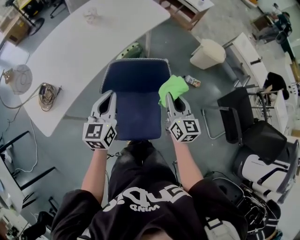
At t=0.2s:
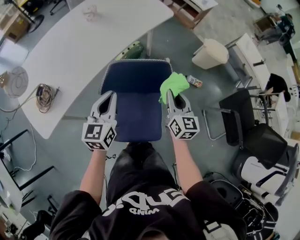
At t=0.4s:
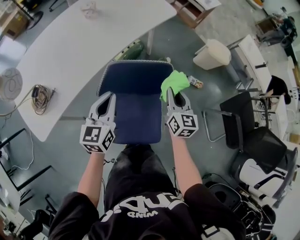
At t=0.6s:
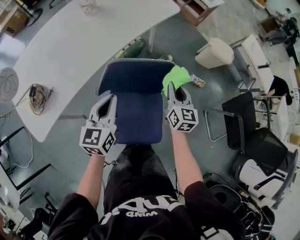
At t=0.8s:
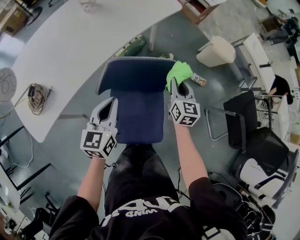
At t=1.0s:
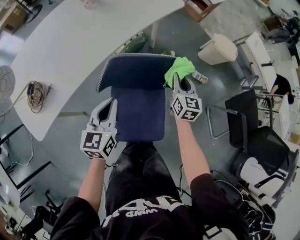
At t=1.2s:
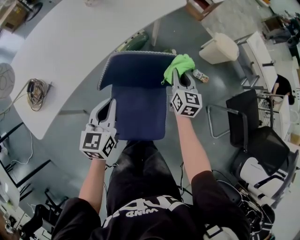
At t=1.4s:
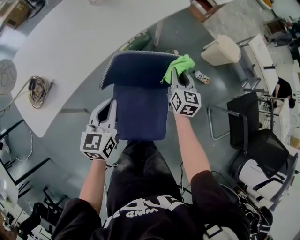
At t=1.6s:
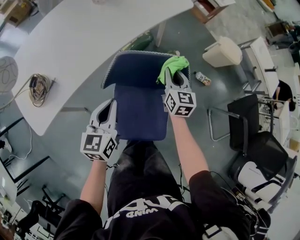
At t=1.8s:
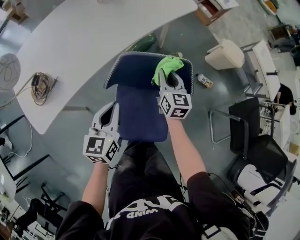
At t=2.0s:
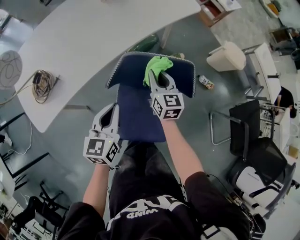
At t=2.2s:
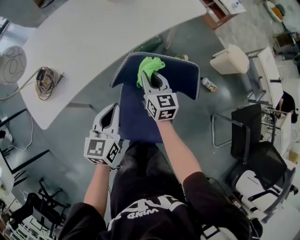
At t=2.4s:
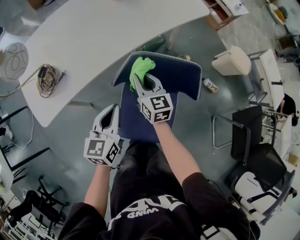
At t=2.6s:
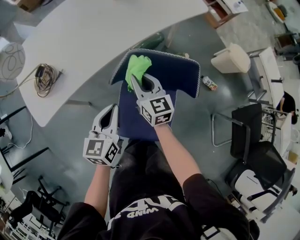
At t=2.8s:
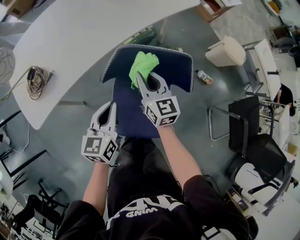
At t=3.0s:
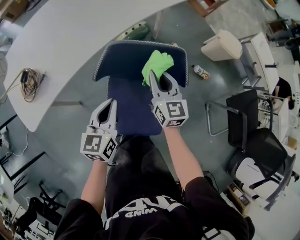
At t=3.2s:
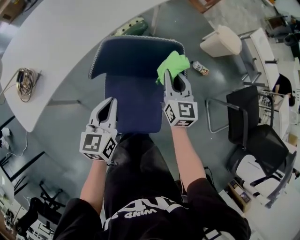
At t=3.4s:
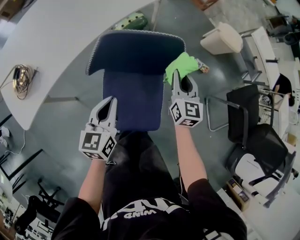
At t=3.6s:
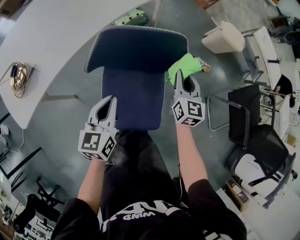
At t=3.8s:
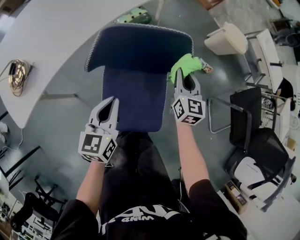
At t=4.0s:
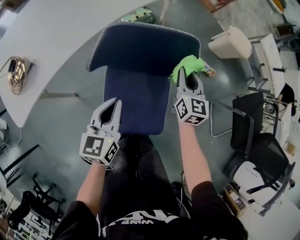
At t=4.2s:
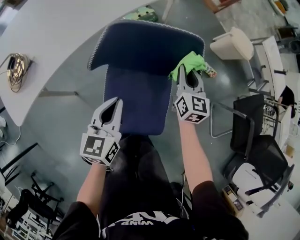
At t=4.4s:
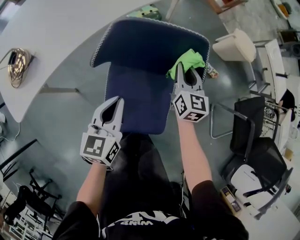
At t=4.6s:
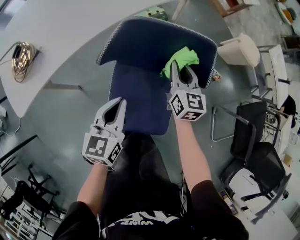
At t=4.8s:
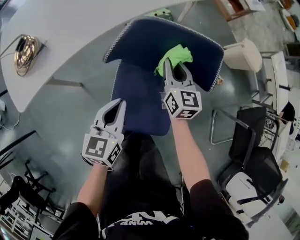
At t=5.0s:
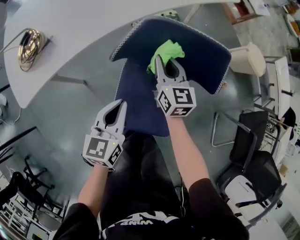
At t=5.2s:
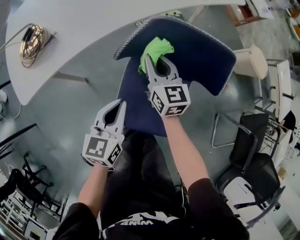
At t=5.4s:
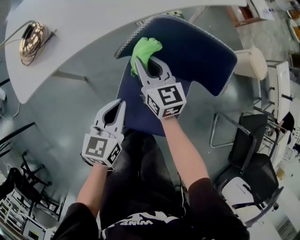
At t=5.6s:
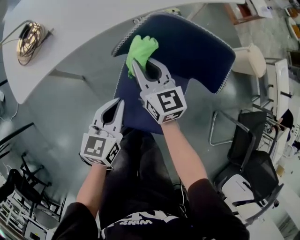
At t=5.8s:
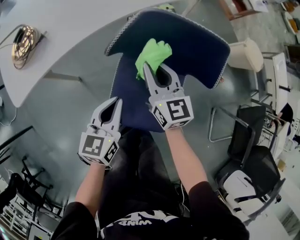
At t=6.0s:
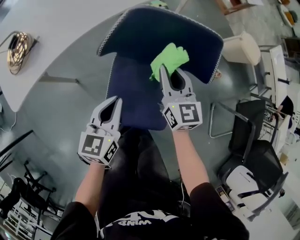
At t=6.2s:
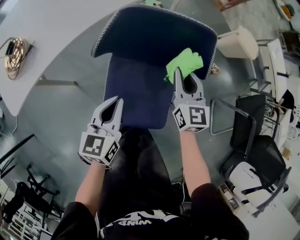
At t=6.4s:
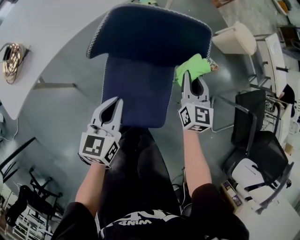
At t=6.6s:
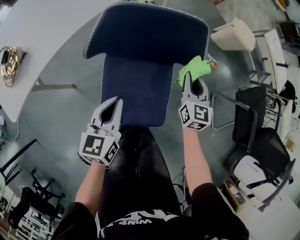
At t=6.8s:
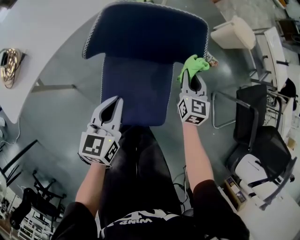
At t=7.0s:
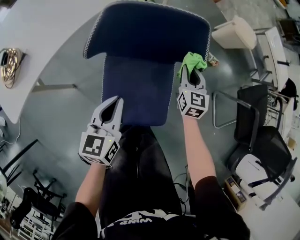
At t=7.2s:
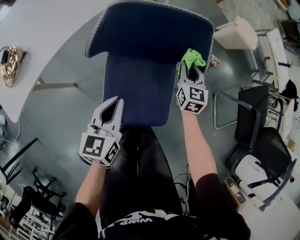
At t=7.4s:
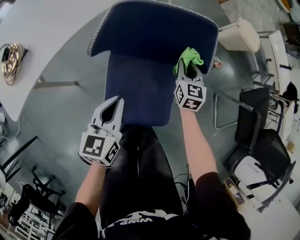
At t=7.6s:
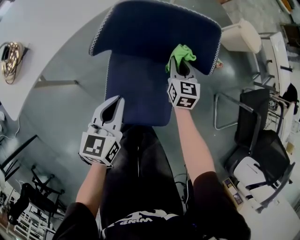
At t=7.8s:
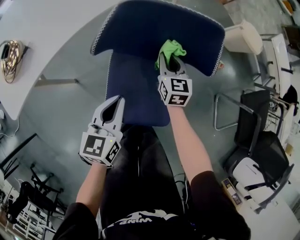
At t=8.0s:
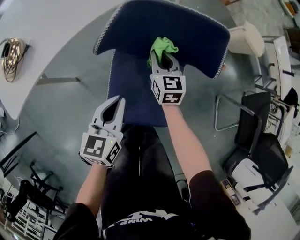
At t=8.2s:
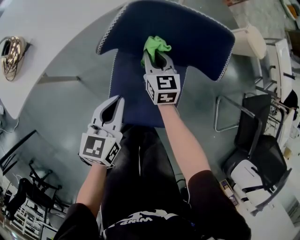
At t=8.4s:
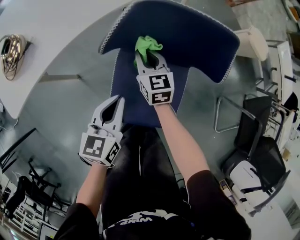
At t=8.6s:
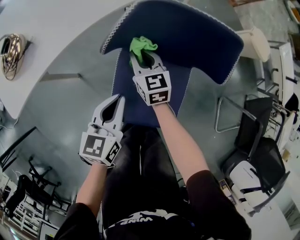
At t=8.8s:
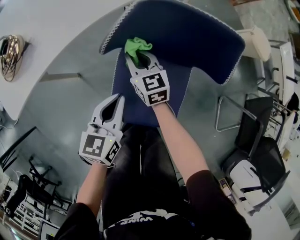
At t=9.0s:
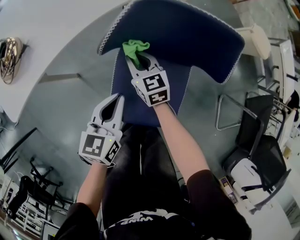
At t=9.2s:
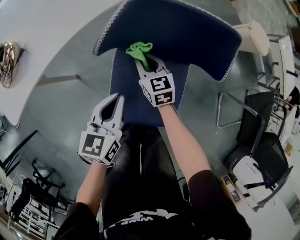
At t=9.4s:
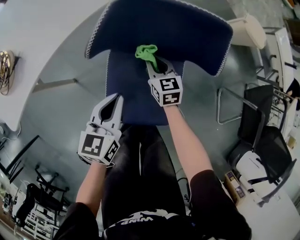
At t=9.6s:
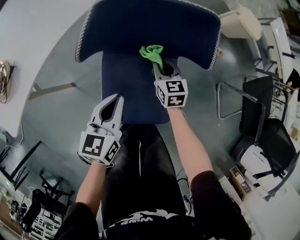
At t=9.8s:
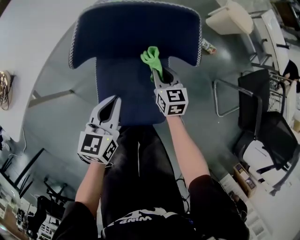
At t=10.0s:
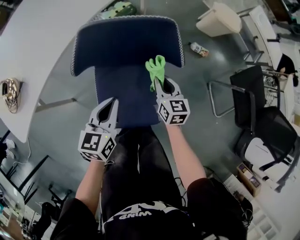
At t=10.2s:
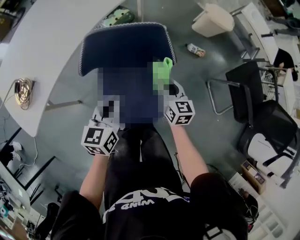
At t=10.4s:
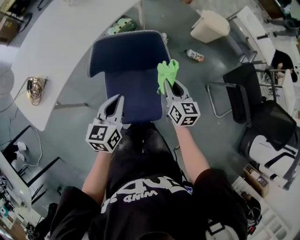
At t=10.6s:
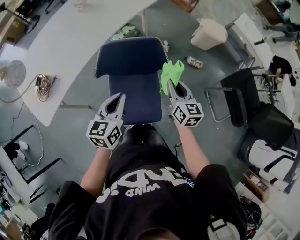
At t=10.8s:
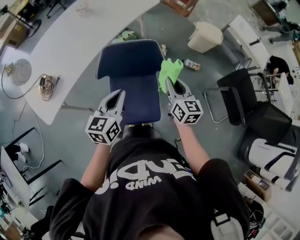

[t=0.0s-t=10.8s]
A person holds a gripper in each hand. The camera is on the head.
t=0.0s to t=1.6s: The left gripper goes approximately 10 cm downward. The right gripper is displaced forward, downward and to the left by approximately 20 cm.
t=1.6s to t=3.0s: The right gripper heads backward, covering roughly 5 cm, and travels to the left and back again, approximately 20 cm each way.
t=3.0s to t=4.6s: Both grippers travel together downward, approximately 10 cm. The right gripper moves approximately 15 cm to the right and comes back.
t=4.6s to t=6.2s: The right gripper travels backward by approximately 5 cm, and travels to the left and back again, some 20 cm each way.
t=6.2s to t=7.8s: The right gripper goes about 10 cm downward, and goes to the right and returns, about 10 cm each way.
t=7.8s to t=9.2s: The right gripper shifts some 10 cm to the left.
t=9.2s to t=10.8s: The right gripper shifts some 40 cm upward and to the right, and rotates about 30 degrees. Meanwhile the left gripper shifts roughly 30 cm upward and to the right.

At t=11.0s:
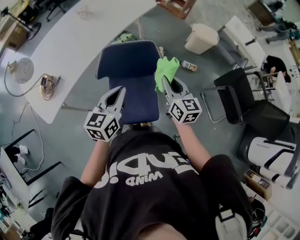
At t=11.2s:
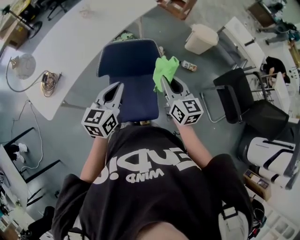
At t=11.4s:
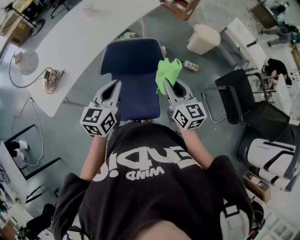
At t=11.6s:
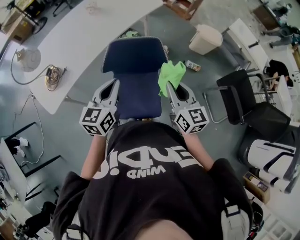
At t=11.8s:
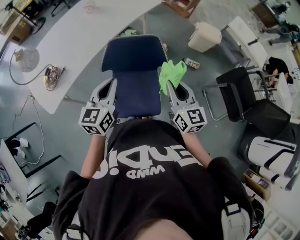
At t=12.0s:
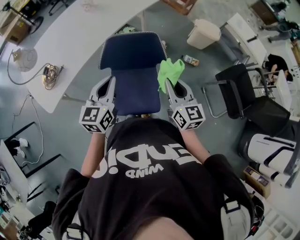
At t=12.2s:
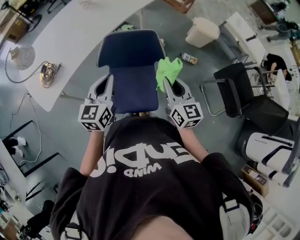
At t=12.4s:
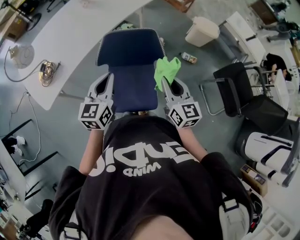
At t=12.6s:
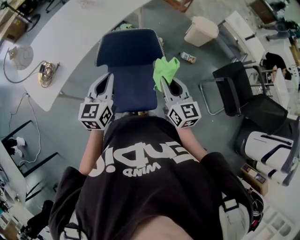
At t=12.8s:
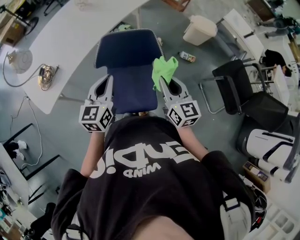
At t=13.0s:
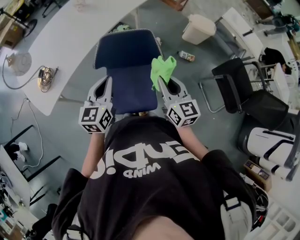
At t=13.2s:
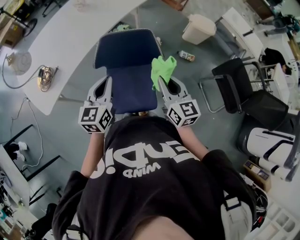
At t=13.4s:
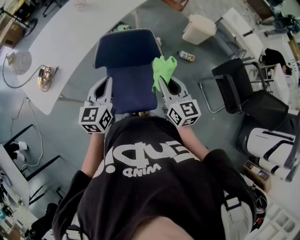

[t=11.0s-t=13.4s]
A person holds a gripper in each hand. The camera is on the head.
t=11.0s to t=12.2s: The right gripper moves backward, approximately 5 cm; the left gripper goes about 5 cm to the left.
t=12.2s to t=13.4s: Both grippers stay put.

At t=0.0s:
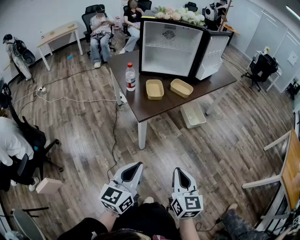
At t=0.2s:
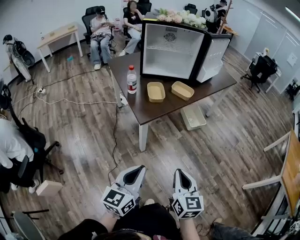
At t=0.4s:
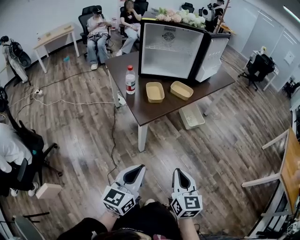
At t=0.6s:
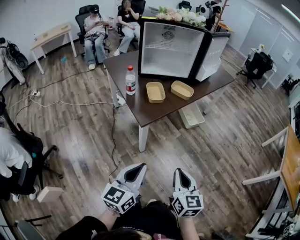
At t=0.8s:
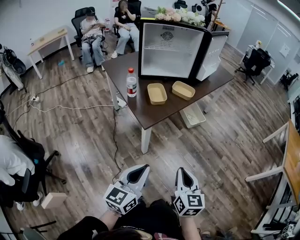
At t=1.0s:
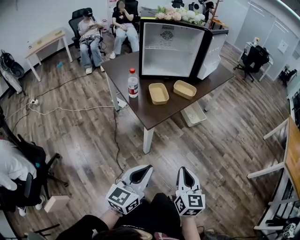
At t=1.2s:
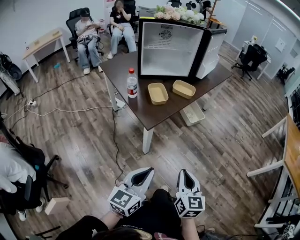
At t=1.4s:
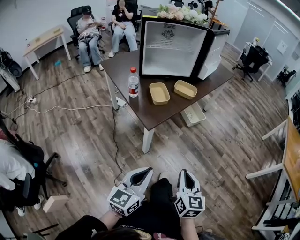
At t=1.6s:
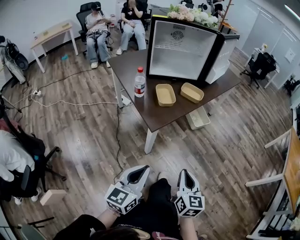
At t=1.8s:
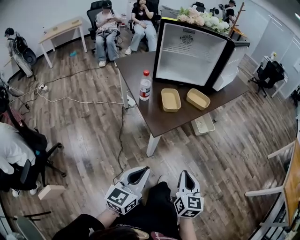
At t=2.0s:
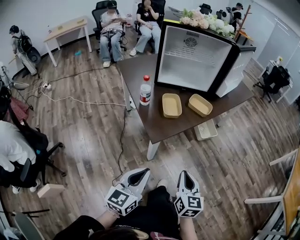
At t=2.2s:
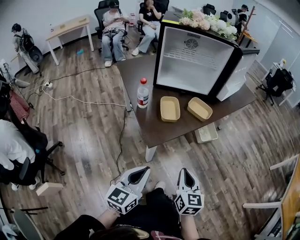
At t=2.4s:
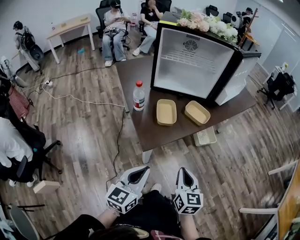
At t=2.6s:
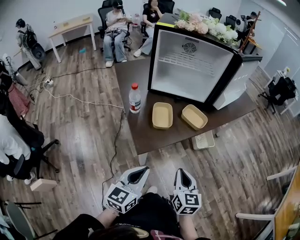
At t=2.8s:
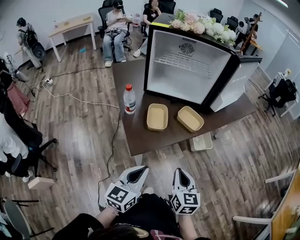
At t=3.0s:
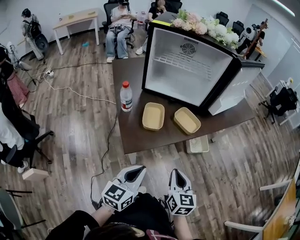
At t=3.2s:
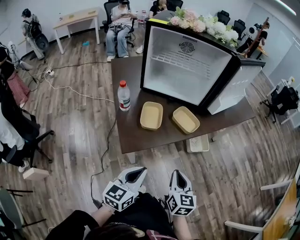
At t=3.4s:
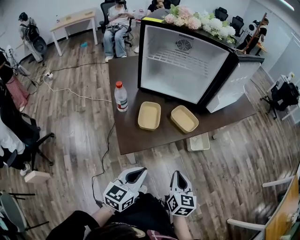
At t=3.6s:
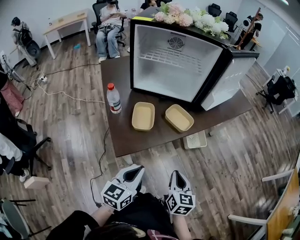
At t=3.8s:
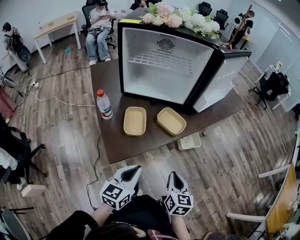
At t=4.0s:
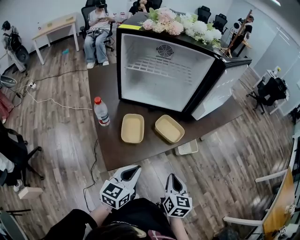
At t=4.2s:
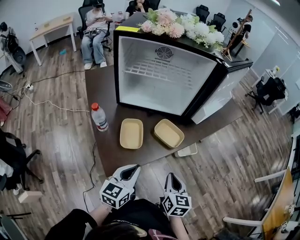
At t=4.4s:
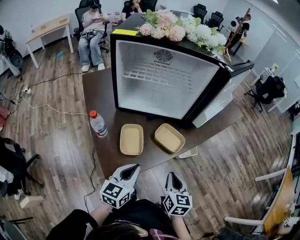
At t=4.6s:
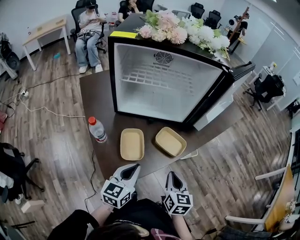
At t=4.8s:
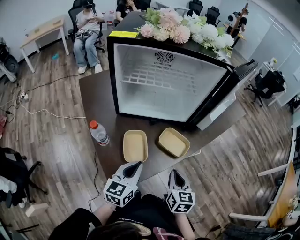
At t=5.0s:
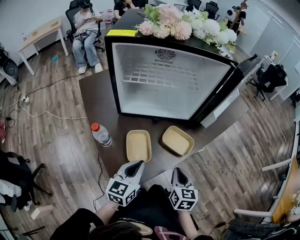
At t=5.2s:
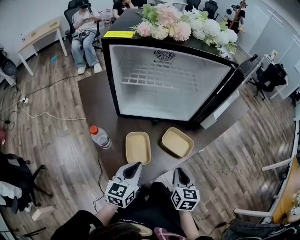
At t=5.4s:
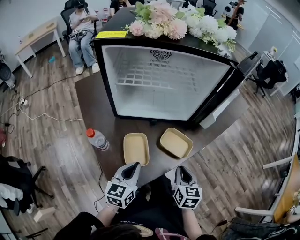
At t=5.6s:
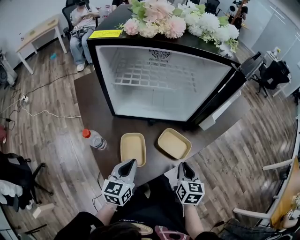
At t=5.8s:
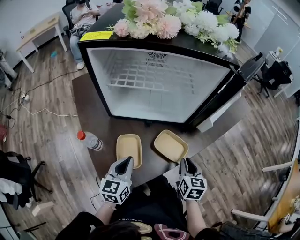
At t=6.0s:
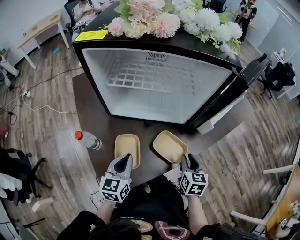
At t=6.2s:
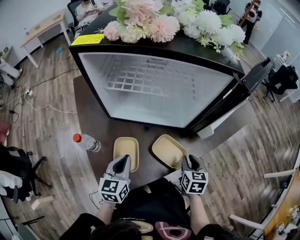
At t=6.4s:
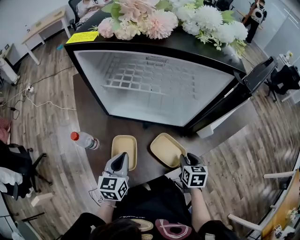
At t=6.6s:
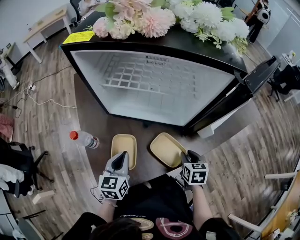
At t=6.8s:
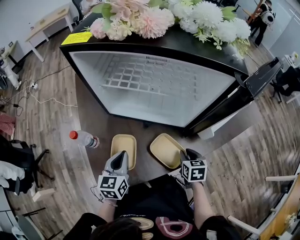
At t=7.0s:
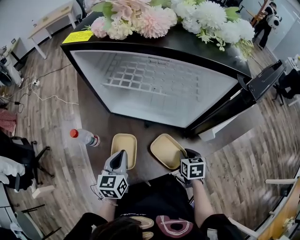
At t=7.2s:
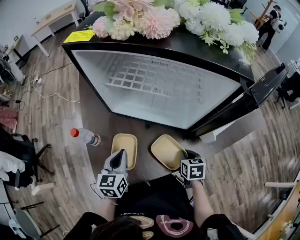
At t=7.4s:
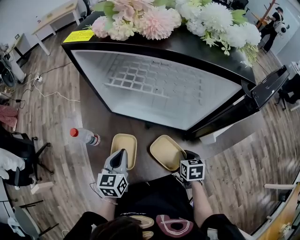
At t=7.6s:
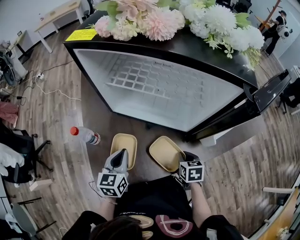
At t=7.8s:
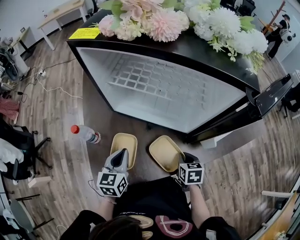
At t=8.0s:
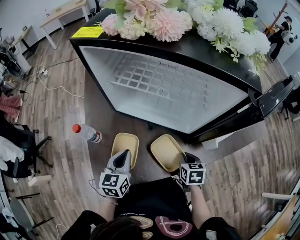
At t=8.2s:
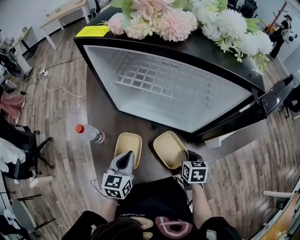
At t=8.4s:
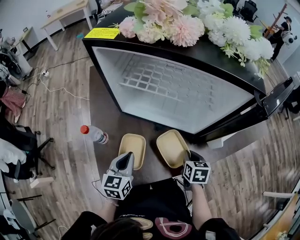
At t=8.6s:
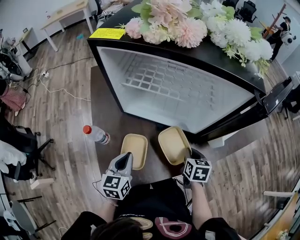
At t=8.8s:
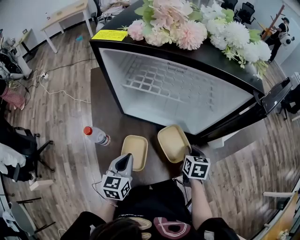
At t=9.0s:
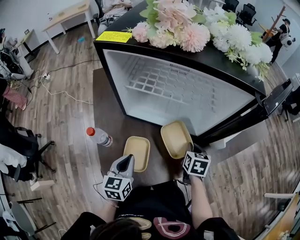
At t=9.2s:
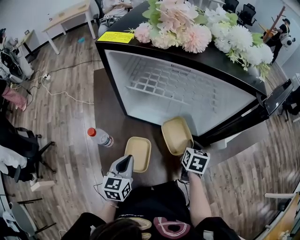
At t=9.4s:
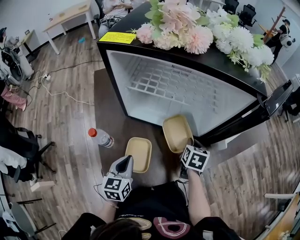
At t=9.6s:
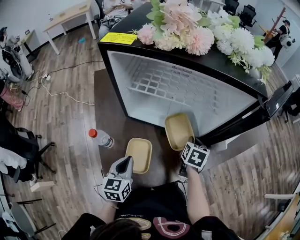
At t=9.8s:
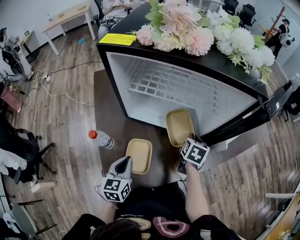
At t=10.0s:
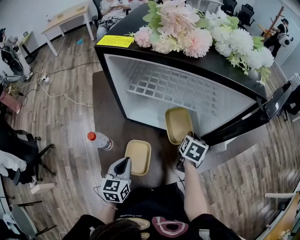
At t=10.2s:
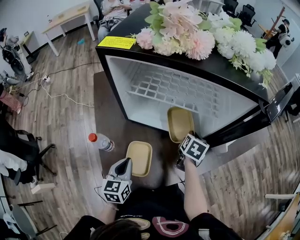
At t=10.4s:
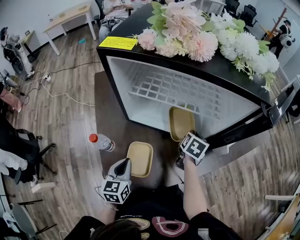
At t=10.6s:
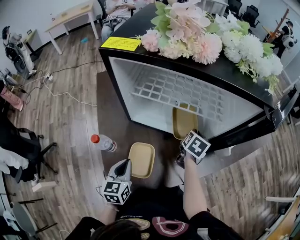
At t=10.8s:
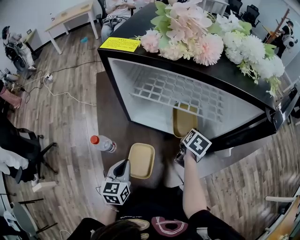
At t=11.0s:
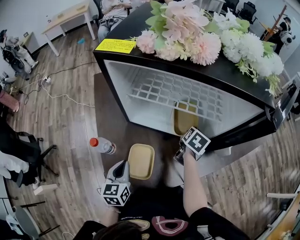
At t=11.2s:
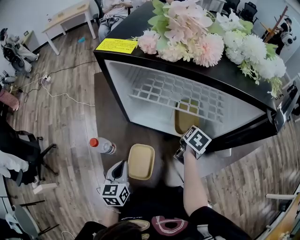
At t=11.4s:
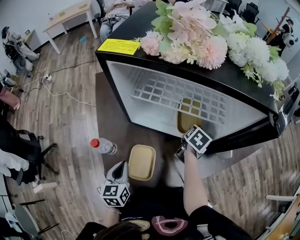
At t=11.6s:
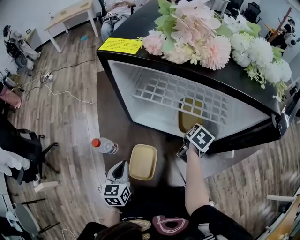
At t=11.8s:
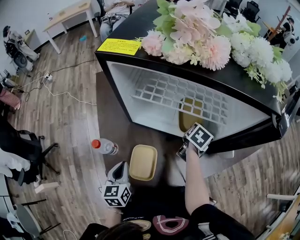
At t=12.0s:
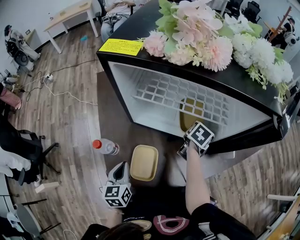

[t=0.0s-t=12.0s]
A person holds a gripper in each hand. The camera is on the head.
t=0.0s to t=1.6s: Both grippers travel together to the left, some 10 cm.
t=1.6s to t=3.0s: The right gripper goes roughly 25 cm forward; the left gripper heads forward and to the right, covering about 25 cm.
t=3.0s to t=4.4s: The grippers both shift forward by roughly 15 cm.
t=4.4s to t=6.0s: The left gripper is displaced forward and to the left by roughly 15 cm. Meanwhile the right gripper is displaced forward by about 20 cm.
t=6.0s to t=7.6s: The right gripper goes some 10 cm downward and forward, and rotates about 30 degrees.
t=7.6s to t=9.0s: The right gripper is displaced upward and forward by roughly 10 cm.
t=9.0s to t=10.4s: The right gripper goes some 10 cm forward.
t=10.4s to t=12.0s: The grippers make only small movements.
